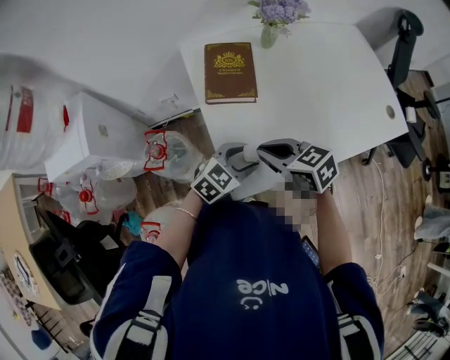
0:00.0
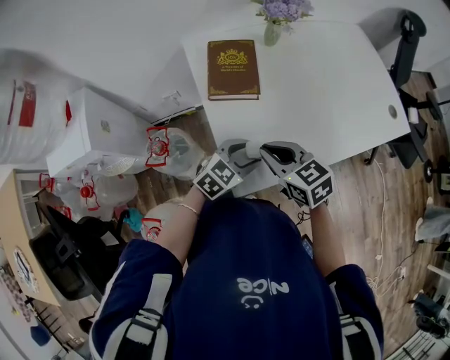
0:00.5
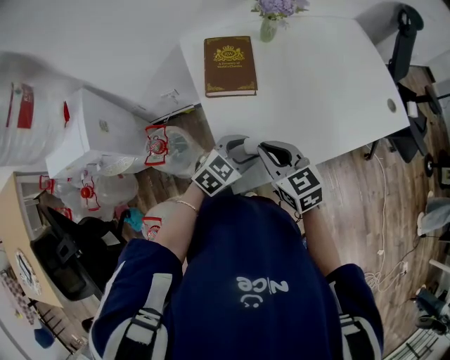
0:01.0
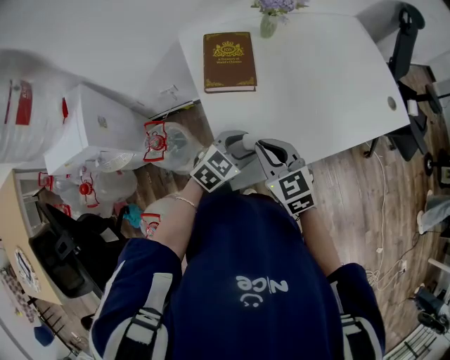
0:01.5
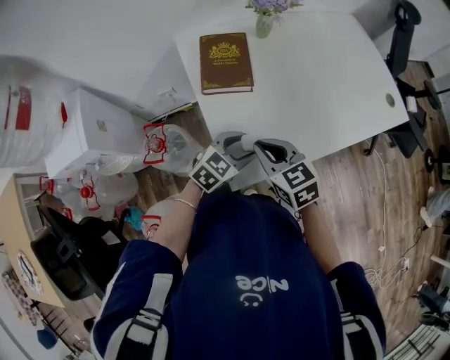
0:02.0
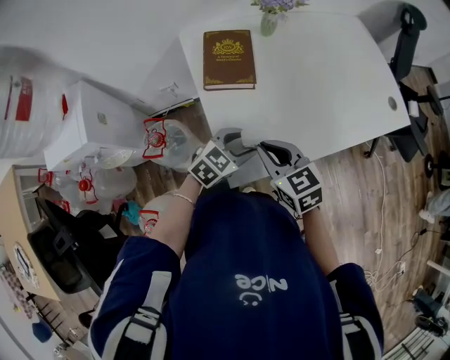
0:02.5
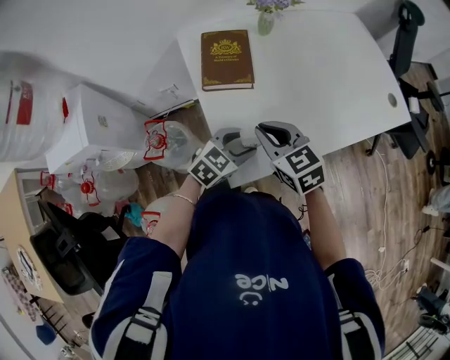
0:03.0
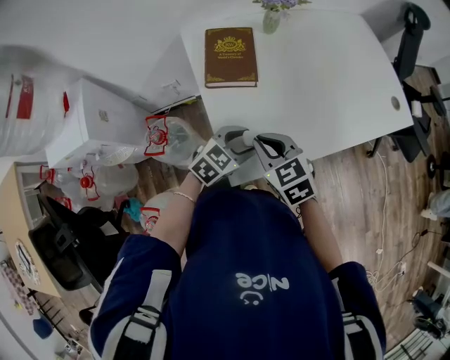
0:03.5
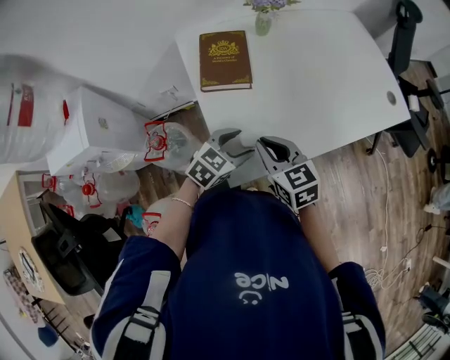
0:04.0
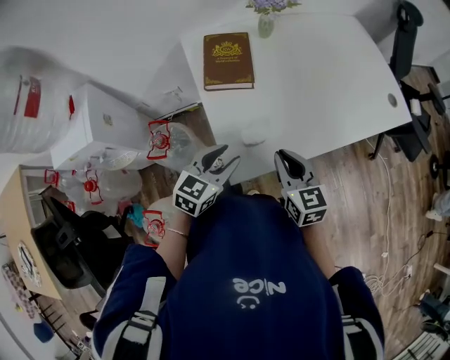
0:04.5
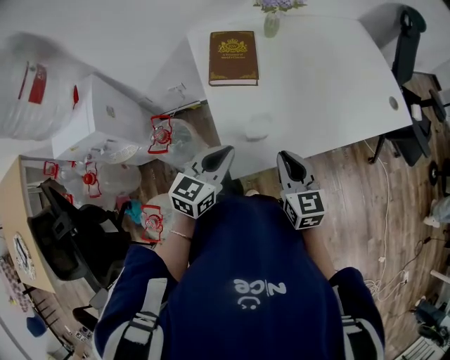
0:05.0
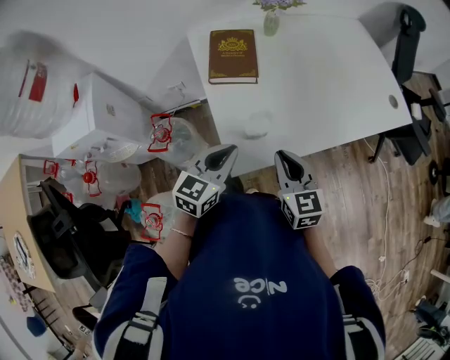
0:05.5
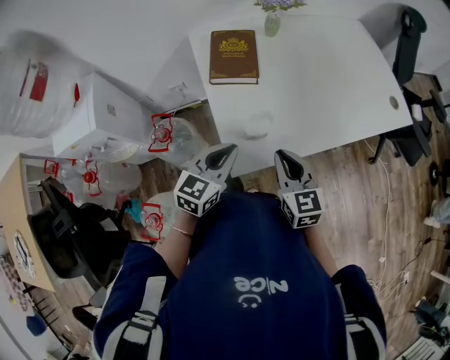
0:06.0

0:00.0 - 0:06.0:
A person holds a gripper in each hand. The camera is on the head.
0:00.0 - 0:02.0: The right gripper turns by some 20 degrees.
0:02.0 - 0:04.0: The grippers move only a little.
0:04.0 - 0:06.0: The right gripper moves backward, approximately 5 cm. The left gripper is displaced upward and backward by roughly 10 cm, swivels roughly 30 degrees, and closes its fingers.

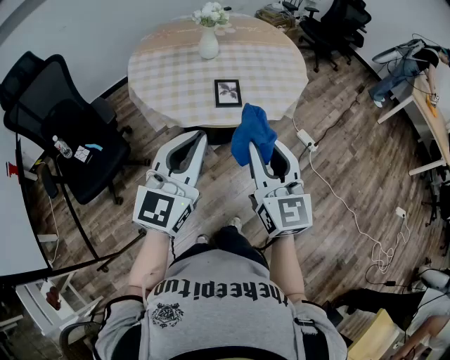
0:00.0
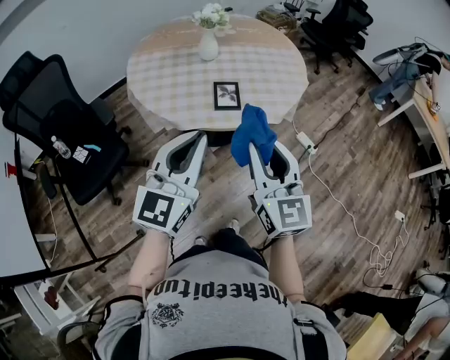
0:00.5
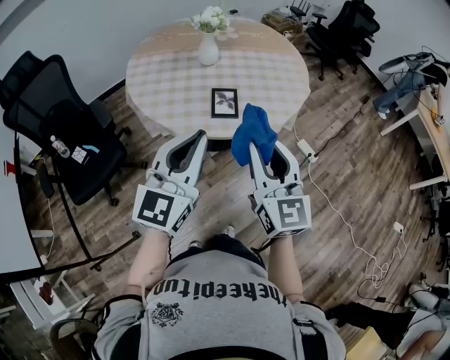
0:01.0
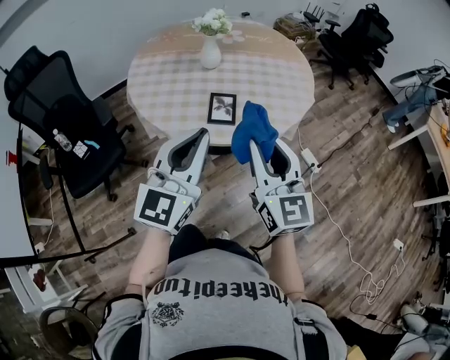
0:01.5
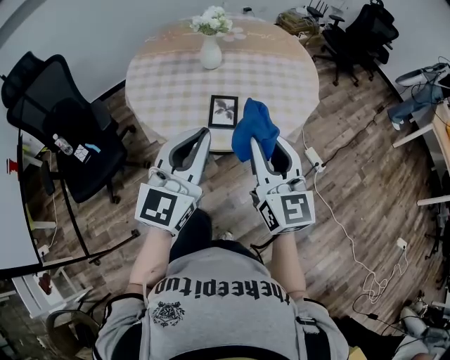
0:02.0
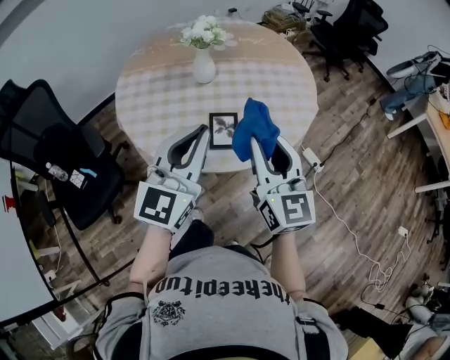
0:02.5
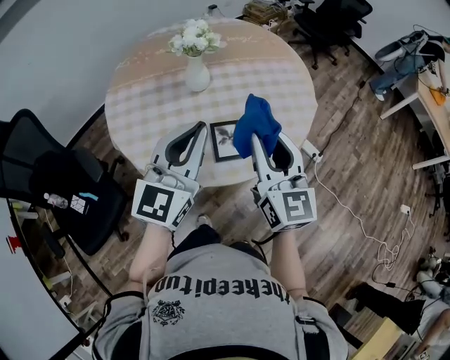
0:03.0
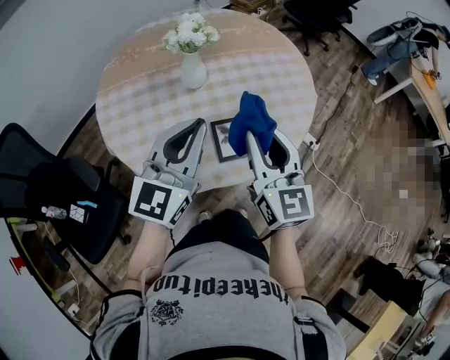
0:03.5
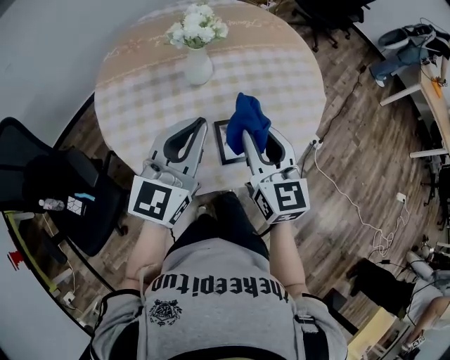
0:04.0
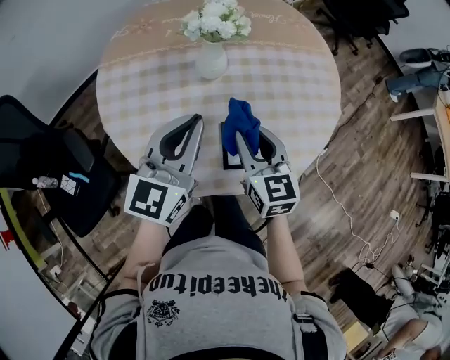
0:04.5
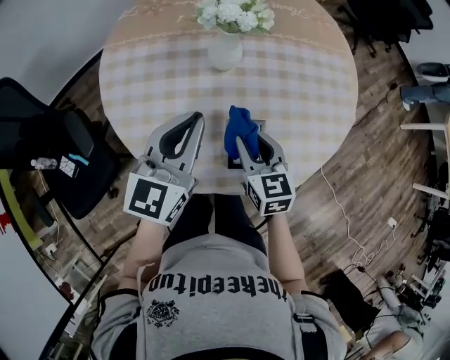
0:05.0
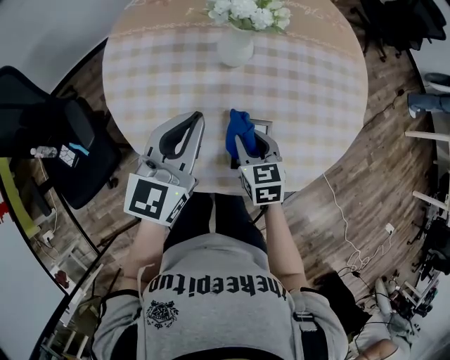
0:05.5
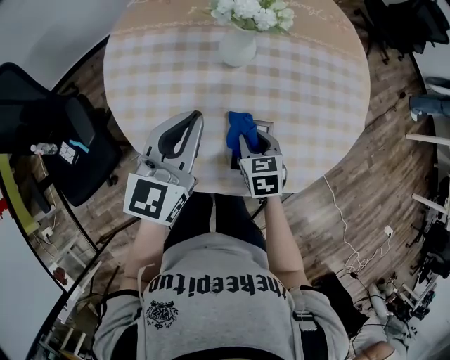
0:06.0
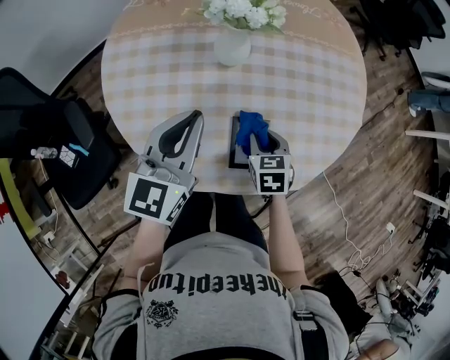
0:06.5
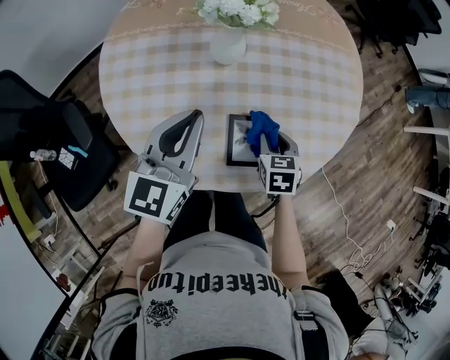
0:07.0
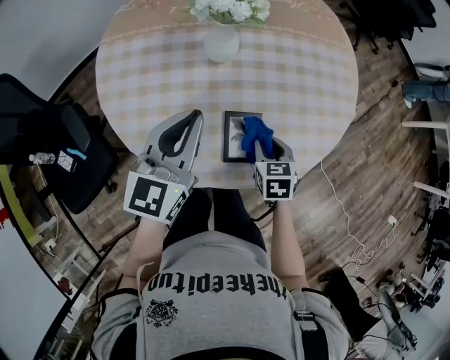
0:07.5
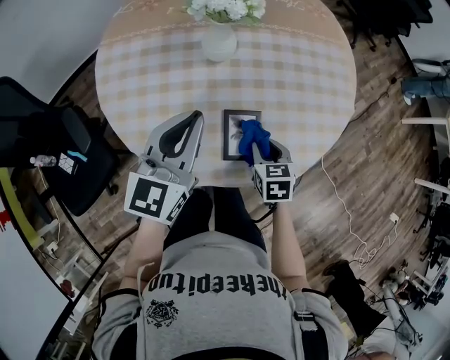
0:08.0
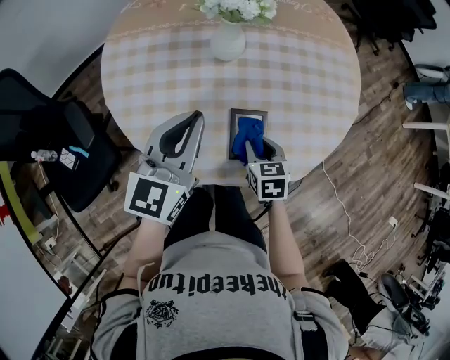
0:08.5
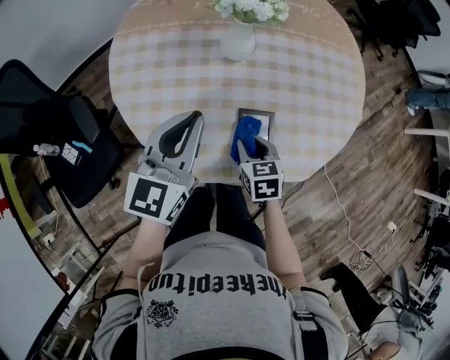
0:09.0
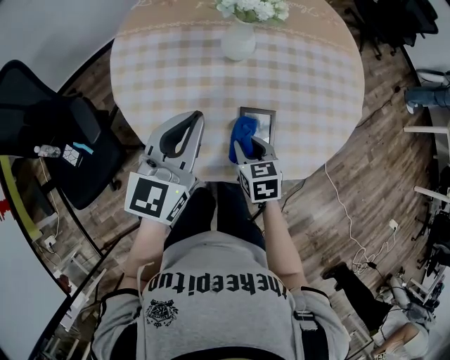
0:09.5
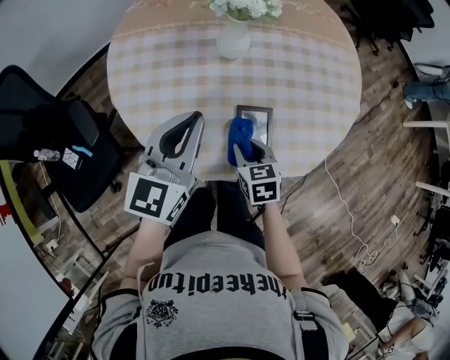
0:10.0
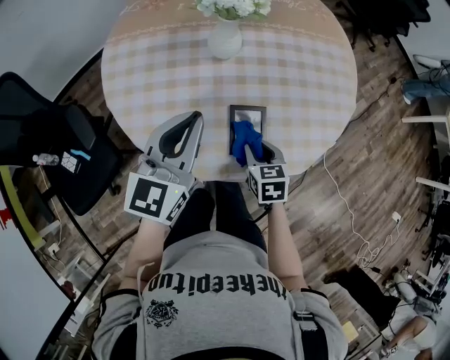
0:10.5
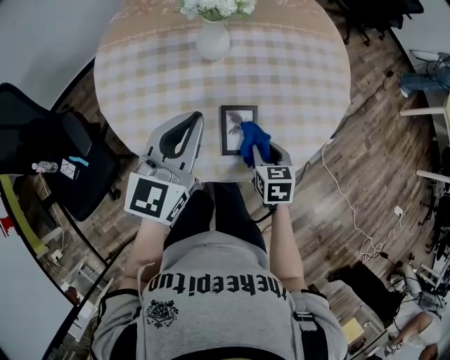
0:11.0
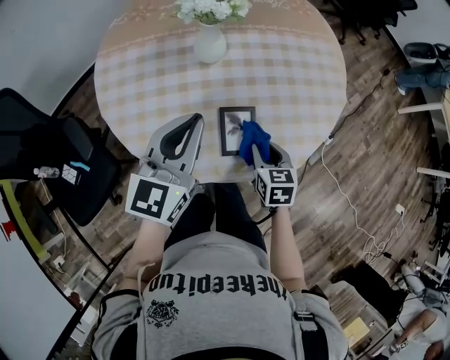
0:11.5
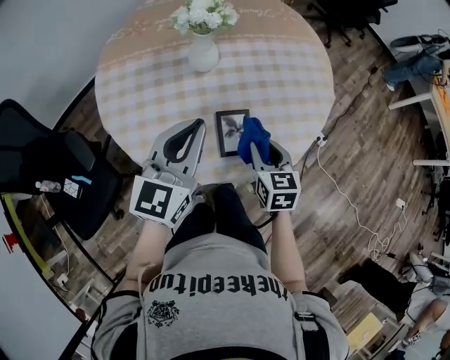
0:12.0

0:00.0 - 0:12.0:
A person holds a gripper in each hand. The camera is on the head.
0:00.0 - 0:02.0: The right gripper shifts about 15 cm forward. Meanwhile the left gripper travels forward and to the right by approximately 15 cm.
0:02.0 - 0:04.0: The left gripper heads forward and to the left, covering approximately 20 cm, while the right gripper heads forward, to the left and downward, covering some 20 cm.
0:04.0 - 0:06.0: The right gripper goes roughly 25 cm downward, and tilts its fingers roughly 40 degrees downward. The left gripper shifts some 10 cm downward, forward and to the left, and rotates roughly 20 degrees.
0:06.0 - 0:08.0: The right gripper heads to the right, covering roughly 10 cm.
0:08.0 - 0:10.0: The right gripper shifts some 10 cm to the left.
0:10.0 - 0:12.0: The left gripper is displaced to the right by about 5 cm. The right gripper moves to the right and upward, some 10 cm, and swivels some 20 degrees.

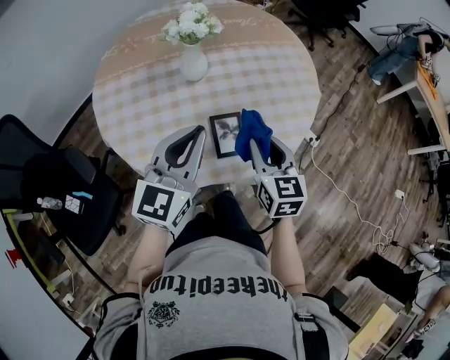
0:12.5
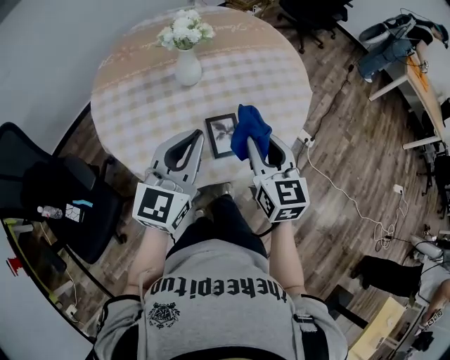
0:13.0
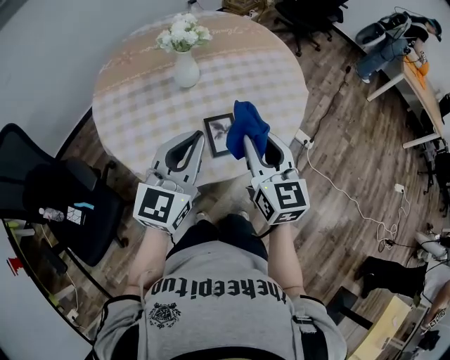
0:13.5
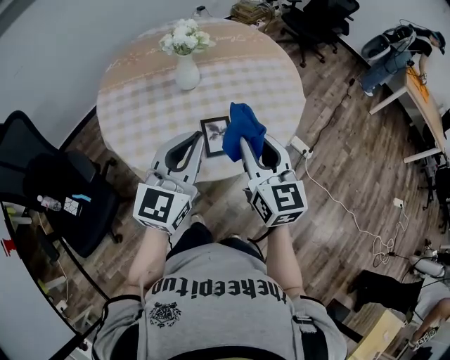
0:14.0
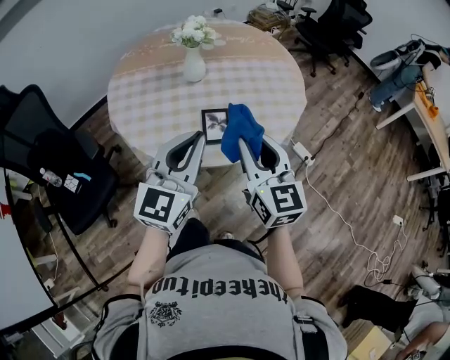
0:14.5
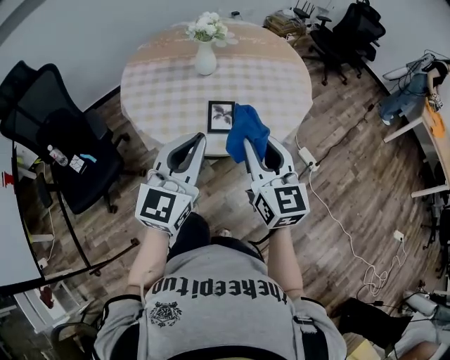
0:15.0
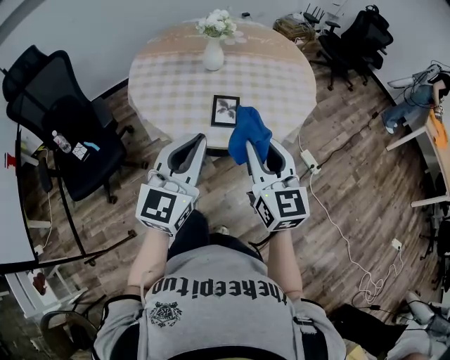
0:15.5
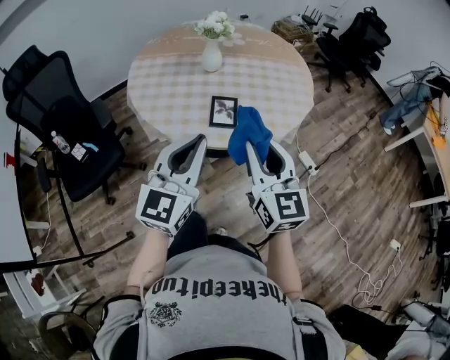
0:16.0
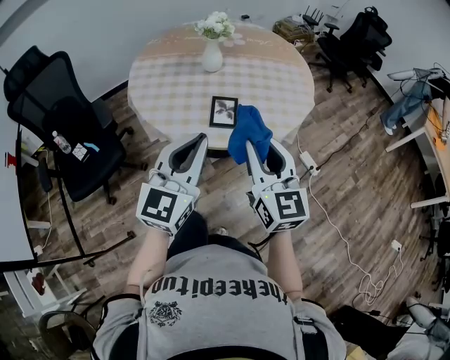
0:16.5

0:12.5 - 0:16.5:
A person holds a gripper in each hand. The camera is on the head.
0:12.5 - 0:14.5: The left gripper heads backward and to the right, covering roughly 15 cm. The right gripper heads backward and upward, covering approximately 15 cm, and rotates about 20 degrees.
0:14.5 - 0:16.5: The grippers both shift backward by roughly 10 cm.

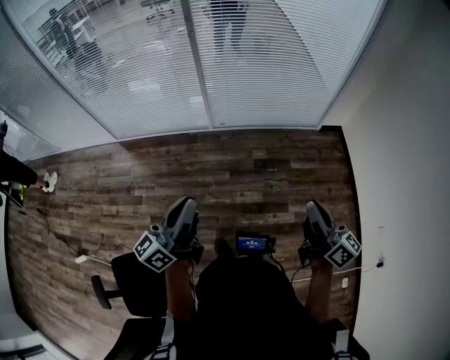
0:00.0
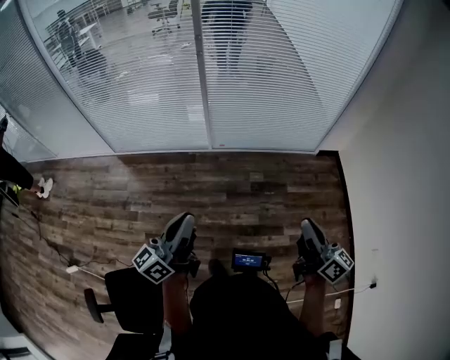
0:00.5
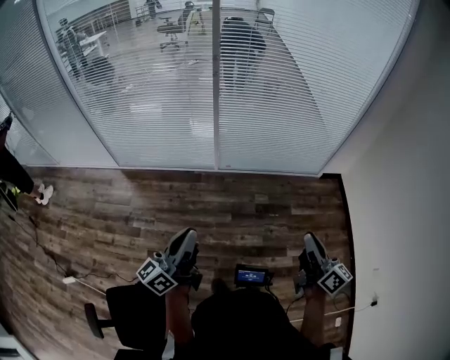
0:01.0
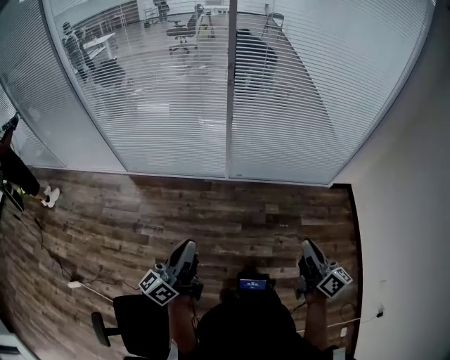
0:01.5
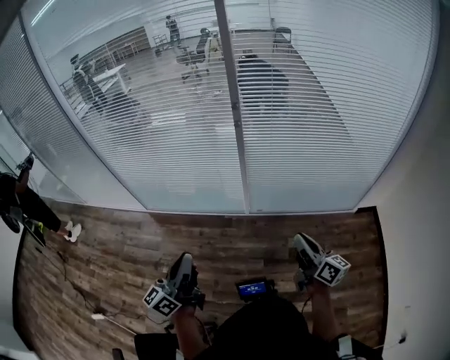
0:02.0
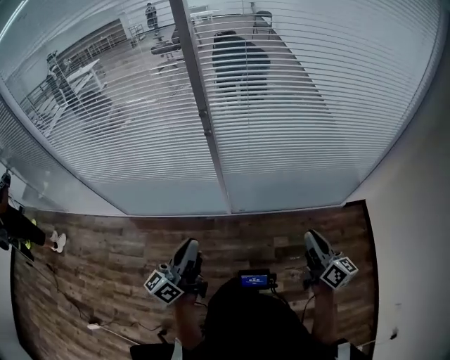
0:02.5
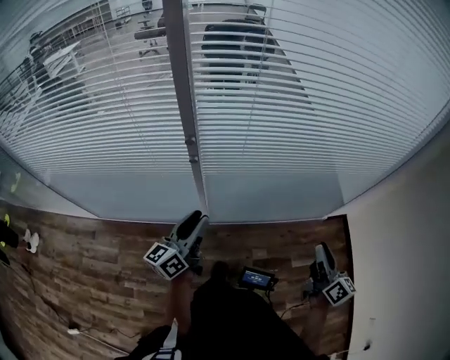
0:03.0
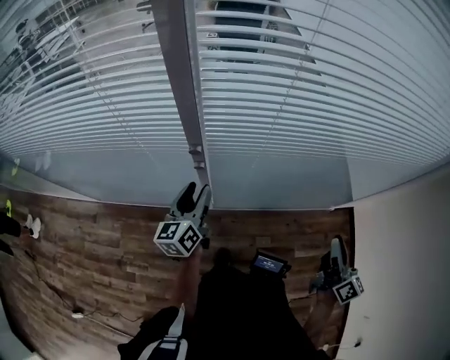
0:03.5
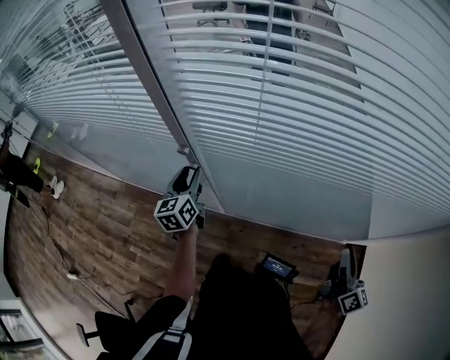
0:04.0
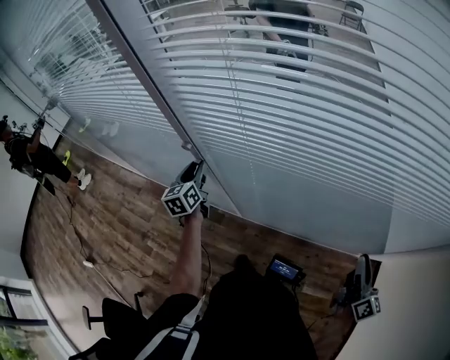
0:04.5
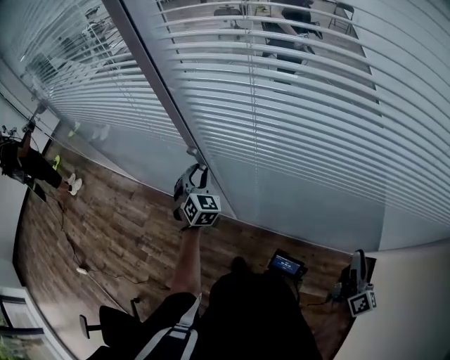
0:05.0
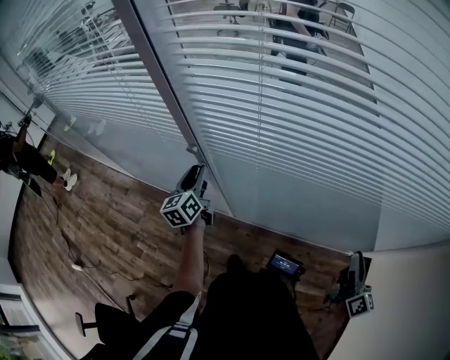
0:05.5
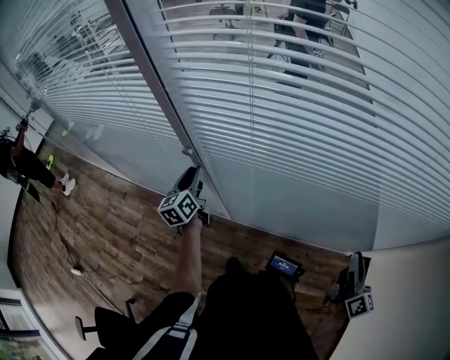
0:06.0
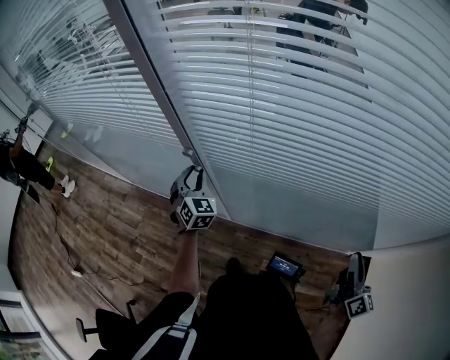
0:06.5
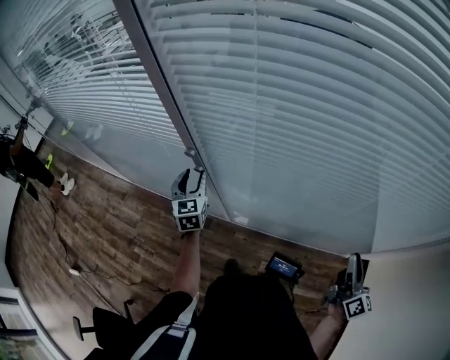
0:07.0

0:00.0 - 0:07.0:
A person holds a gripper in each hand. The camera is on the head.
0:00.0 - 0:02.0: The two grippers go about 30 cm forward and to the left.
0:02.0 - 0:03.5: The left gripper moves forward, approximately 50 cm, rotates some 20 degrees, and opens. Meanwhile the right gripper goes some 30 cm forward and to the right, and swivels about 30 degrees.
0:03.5 - 0:05.0: The right gripper travels to the right and forward by approximately 20 cm. Meanwhile the left gripper travels forward by roughly 5 cm, and twists approximately 60 degrees clockwise, seen from behind.
0:05.0 - 0:07.0: The left gripper rotates some 30 degrees.
